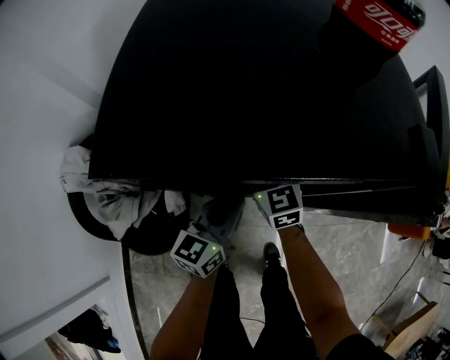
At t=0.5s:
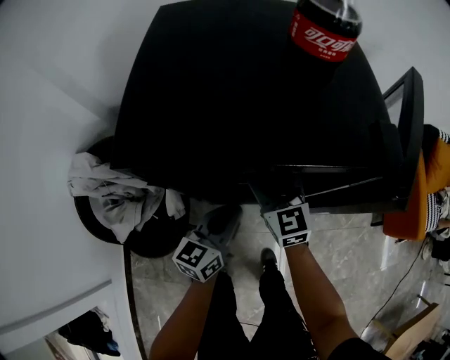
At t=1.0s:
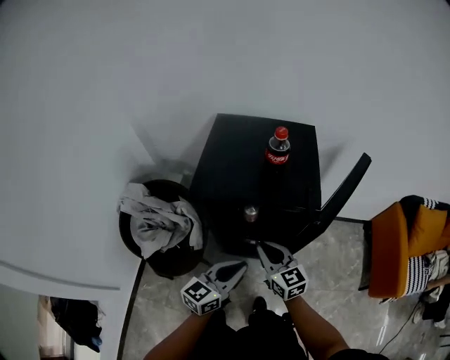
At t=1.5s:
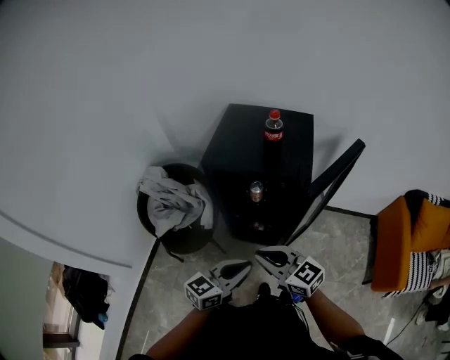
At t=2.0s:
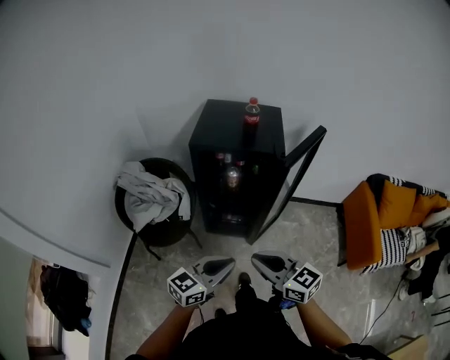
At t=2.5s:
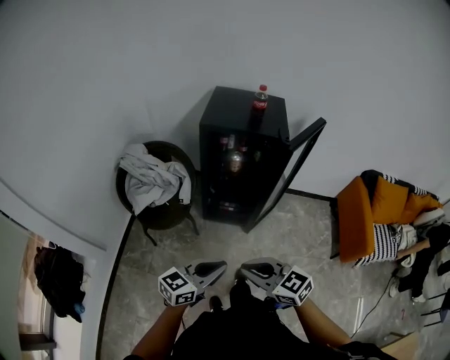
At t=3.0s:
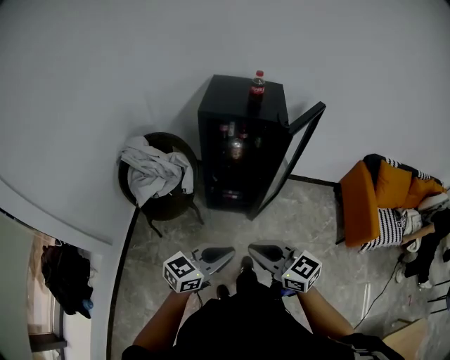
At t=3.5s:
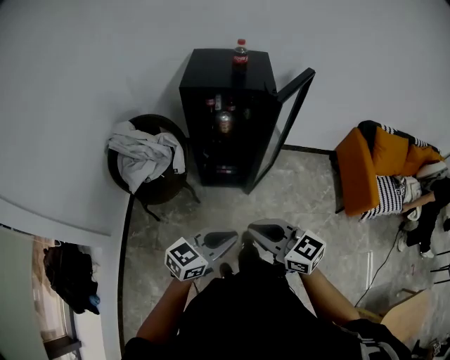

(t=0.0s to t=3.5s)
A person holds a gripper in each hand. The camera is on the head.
t=0.0s - t=2.0s: Both grippers travel together backward and upward, about 50 cm. The right gripper changes its angle by some 30 degrees, and closes.
t=2.0s - t=3.5s: The grippers both shift backward by about 10 cm.

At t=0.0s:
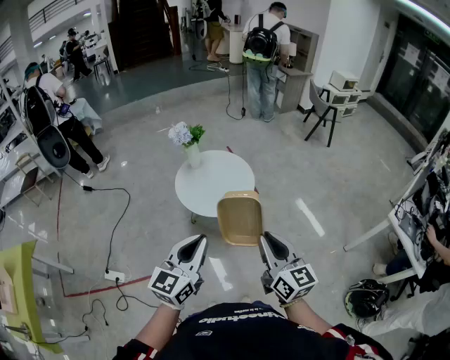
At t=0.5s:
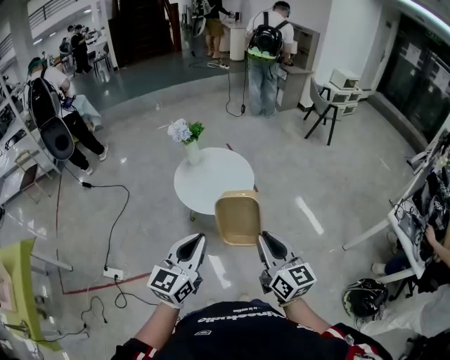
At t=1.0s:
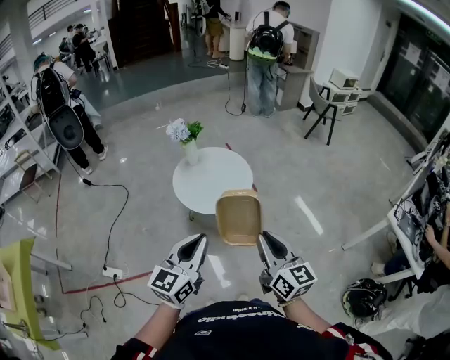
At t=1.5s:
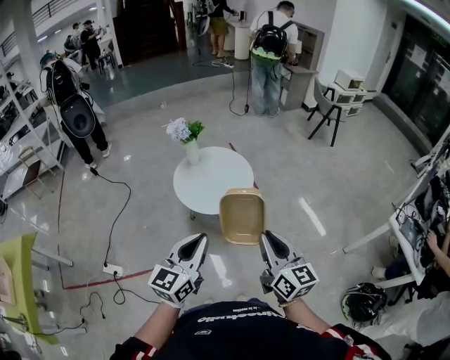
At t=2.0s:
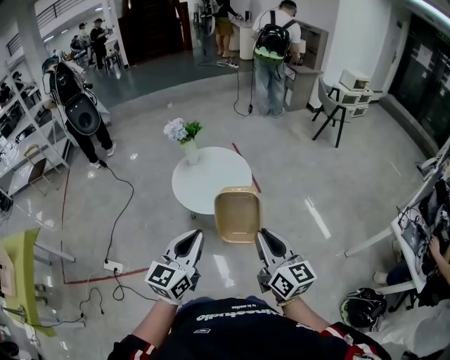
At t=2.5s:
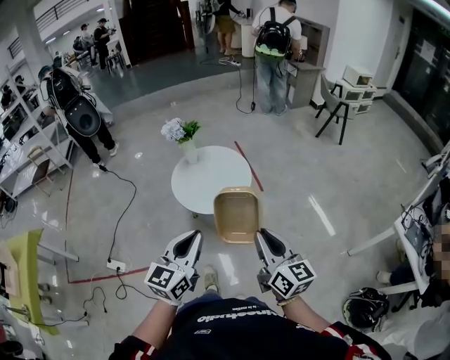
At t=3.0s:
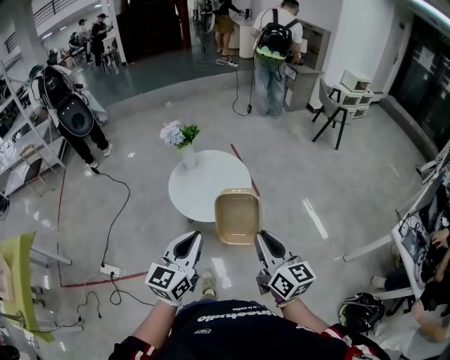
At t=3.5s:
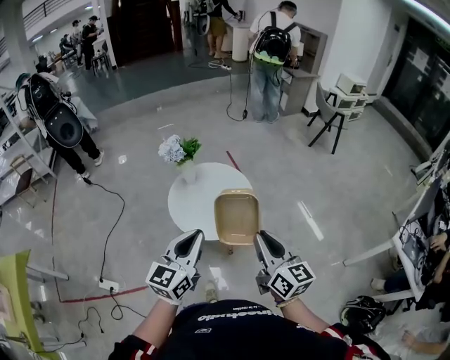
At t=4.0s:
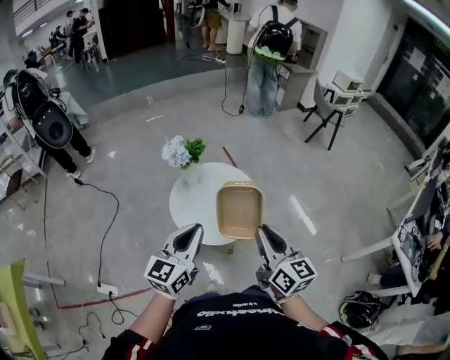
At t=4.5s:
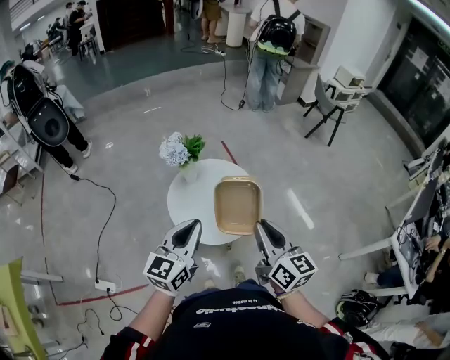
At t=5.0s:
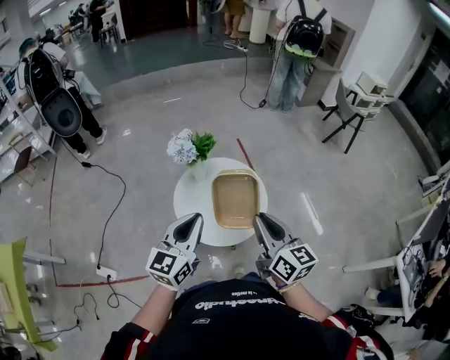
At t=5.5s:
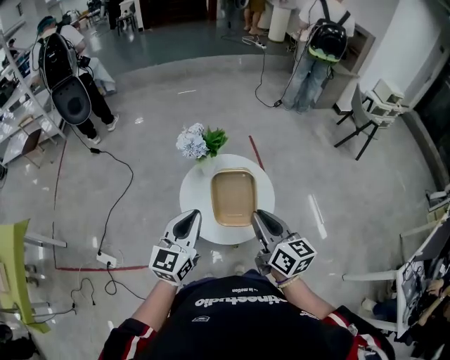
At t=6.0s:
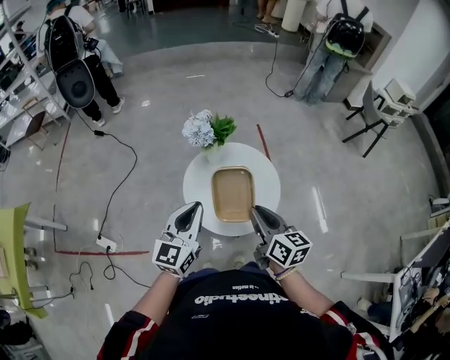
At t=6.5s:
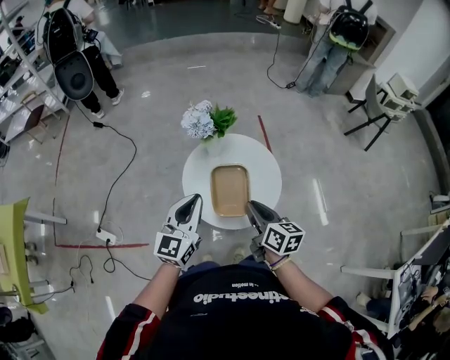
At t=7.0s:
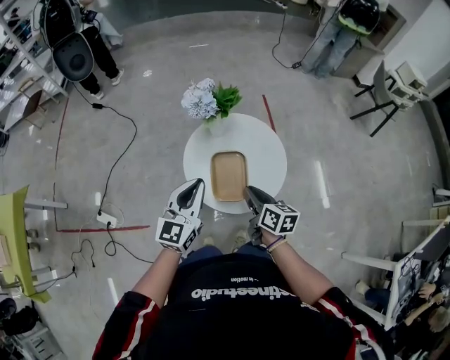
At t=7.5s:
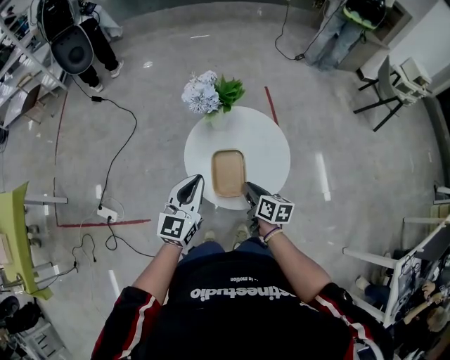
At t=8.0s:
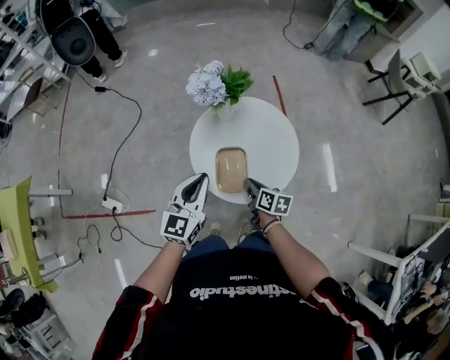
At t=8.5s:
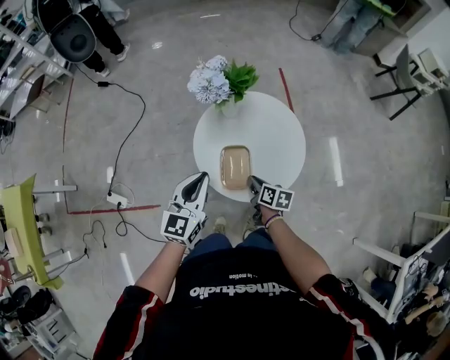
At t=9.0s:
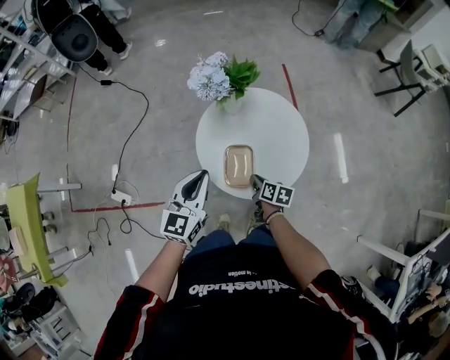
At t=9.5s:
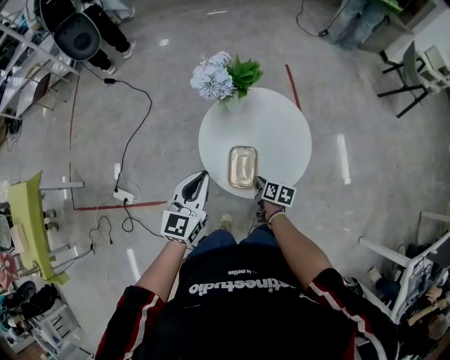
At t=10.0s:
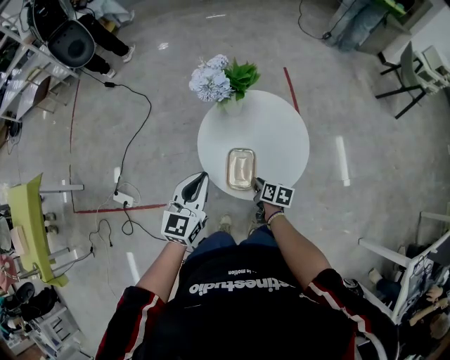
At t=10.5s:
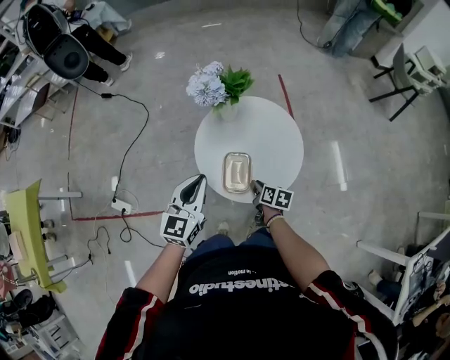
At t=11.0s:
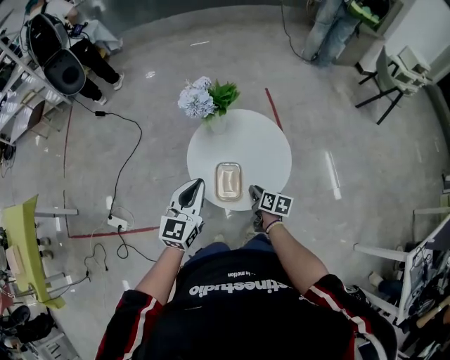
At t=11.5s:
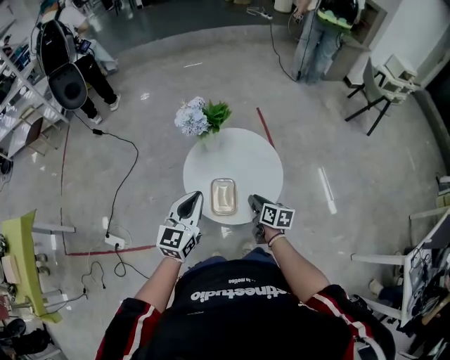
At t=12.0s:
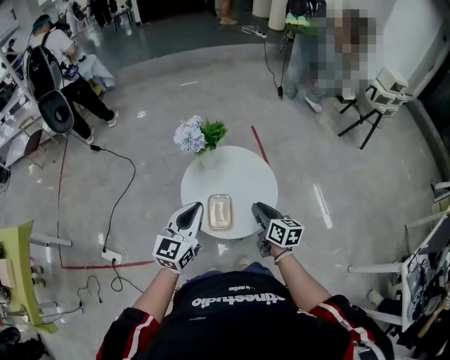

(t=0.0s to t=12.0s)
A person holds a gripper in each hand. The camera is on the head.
t=0.0s - t=2.0s: Both grippers travel together to the right, roughly 5 cm.
t=2.0s - t=4.0s: Both grippers travel together forward and to the left, approximately 25 cm.
t=4.0s - t=6.0s: The right gripper heads forward and downward, covering some 15 cm, and swivels about 20 degrees, while the left gripper heads forward and downward, covering about 10 cm, and turns by approximately 20 degrees.
t=6.0s - t=8.0s: The left gripper heads downward, covering approximately 10 cm. Meanwhile the right gripper heads downward, covering some 25 cm, and turns by some 30 degrees.
t=8.0s - t=10.0s: The right gripper goes some 5 cm downward.
t=10.0s - t=12.0s: The left gripper moves upward, roughly 10 cm. Meanwhile the right gripper is displaced upward by about 20 cm, and changes its angle by approximately 30 degrees.

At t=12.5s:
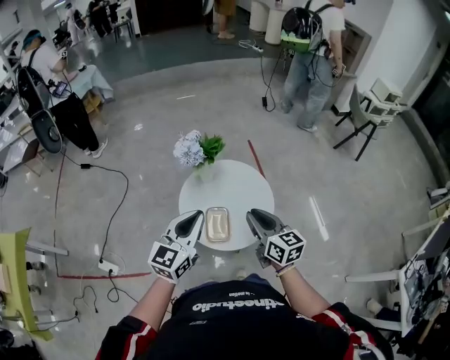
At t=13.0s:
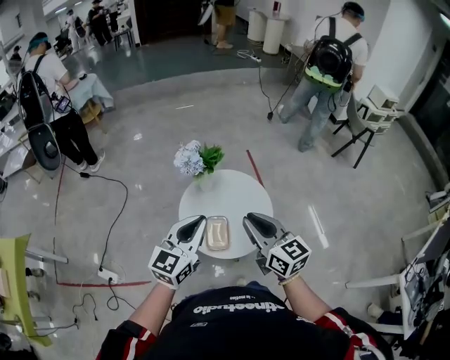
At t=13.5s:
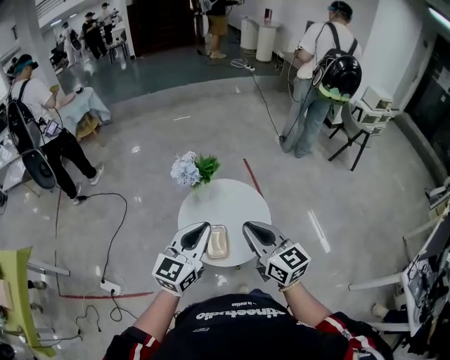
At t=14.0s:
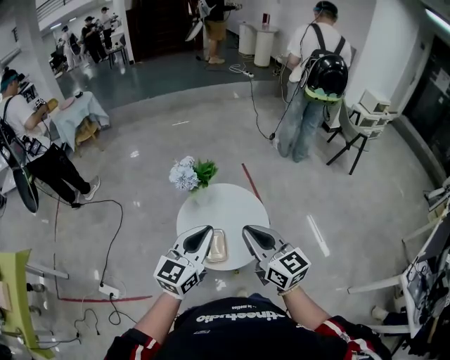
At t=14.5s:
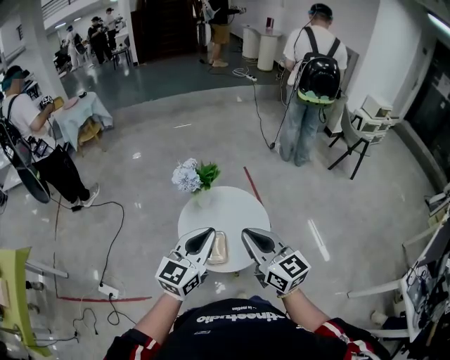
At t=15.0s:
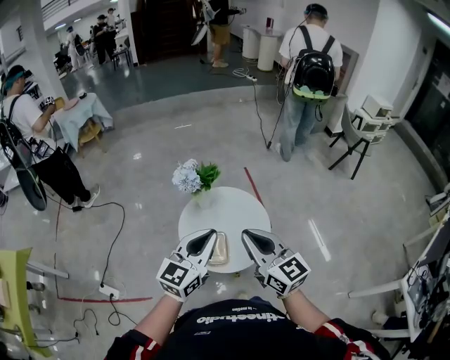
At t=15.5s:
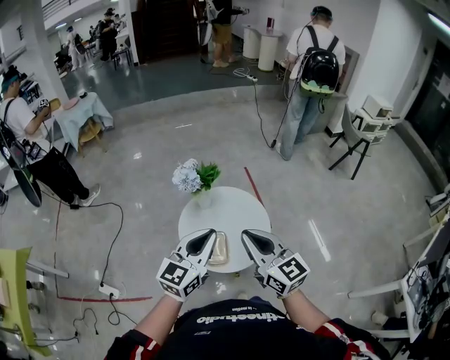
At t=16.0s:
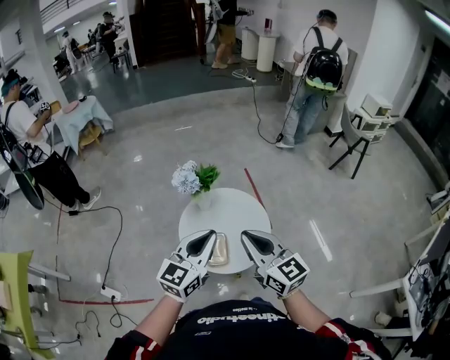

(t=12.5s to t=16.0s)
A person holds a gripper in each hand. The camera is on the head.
t=12.5s - t=14.5s: The left gripper moves upward, approximately 5 cm. Meanwhile the right gripper is displaced upward by some 10 cm.
t=14.5s - t=16.0s: The two grippers keep their place.

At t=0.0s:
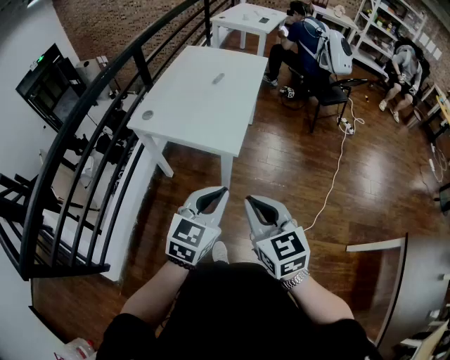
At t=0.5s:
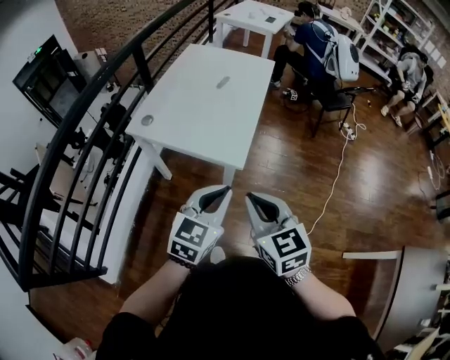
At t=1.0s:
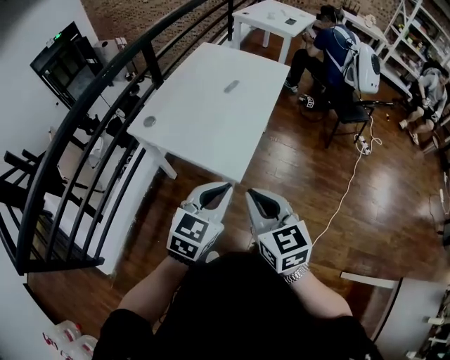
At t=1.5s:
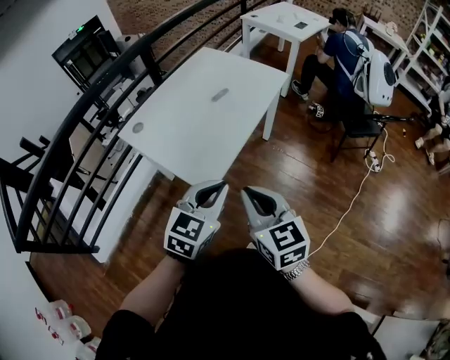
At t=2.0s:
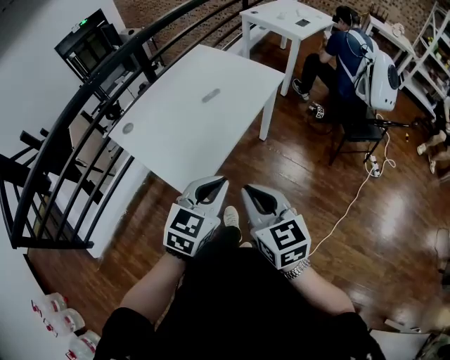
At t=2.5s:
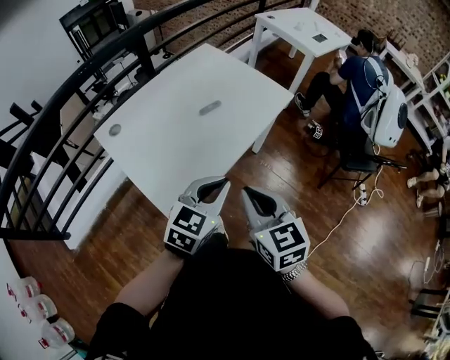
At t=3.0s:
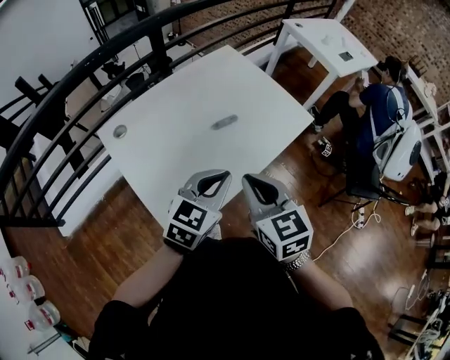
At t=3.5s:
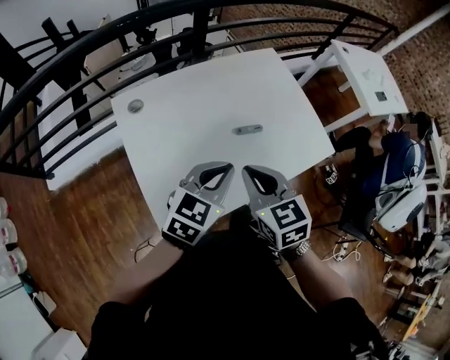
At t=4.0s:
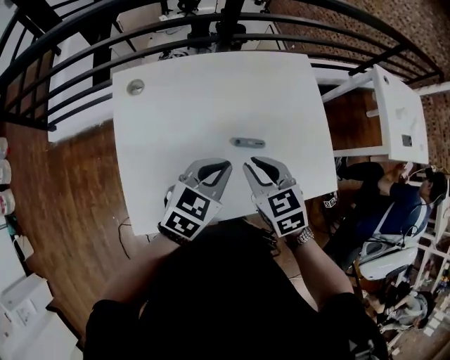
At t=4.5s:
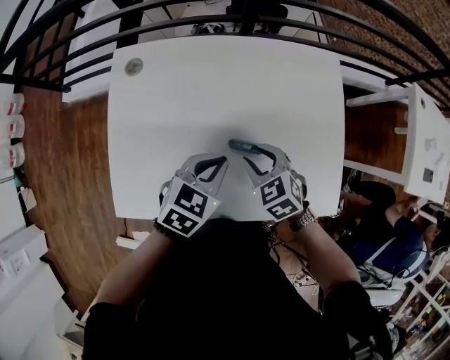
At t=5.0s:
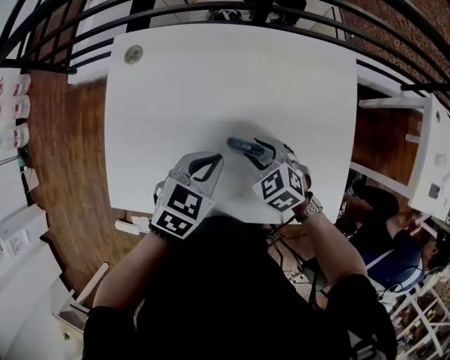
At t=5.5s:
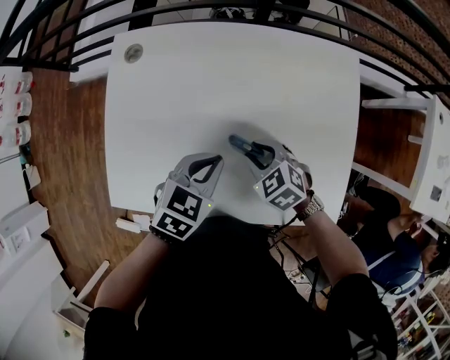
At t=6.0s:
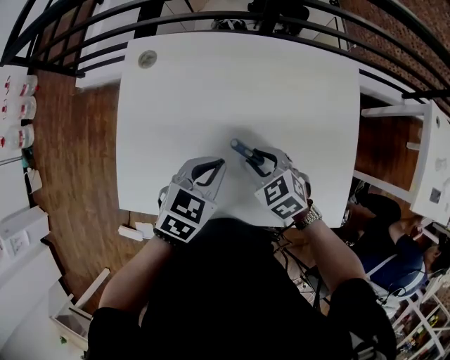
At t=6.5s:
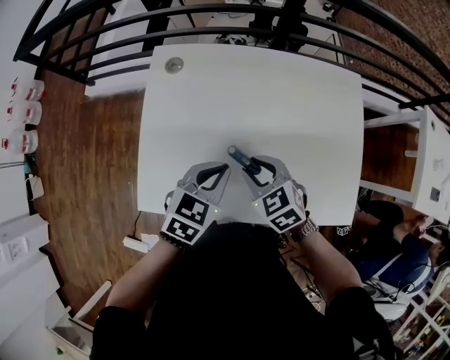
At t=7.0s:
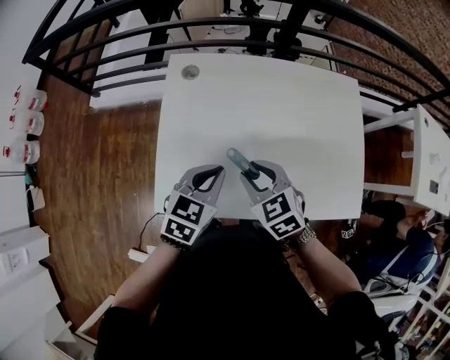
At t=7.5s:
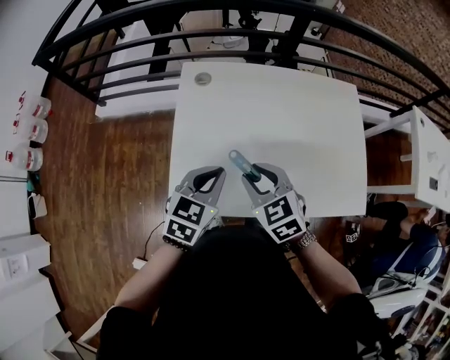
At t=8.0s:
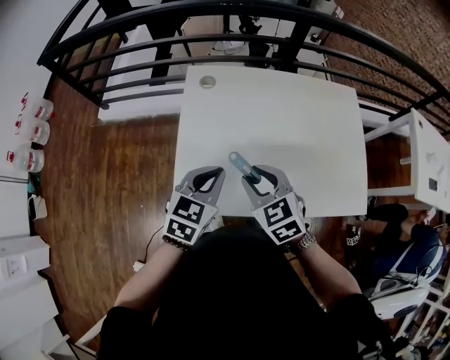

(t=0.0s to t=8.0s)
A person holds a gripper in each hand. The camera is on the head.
t=0.0s - t=2.0s: The two grippers go some 35 cm forward and to the right.
t=2.0s - t=4.0s: The pair of grippers is taken about 40 cm. The left gripper swivels about 40 degrees, while the right gripper changes its angle by roughly 50 degrees.
t=4.0s - t=6.0s: The right gripper shifts some 10 cm downward, and swivels approximately 30 degrees. The left gripper heads downward, covering roughly 5 cm, and rotates approximately 20 degrees.
t=6.0s - t=8.0s: The right gripper heads to the left, upward and backward, covering roughly 25 cm, while the left gripper moves to the left and upward, some 20 cm.
